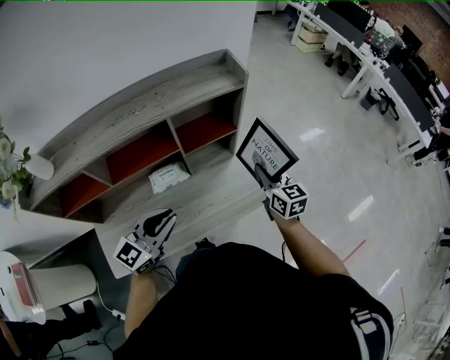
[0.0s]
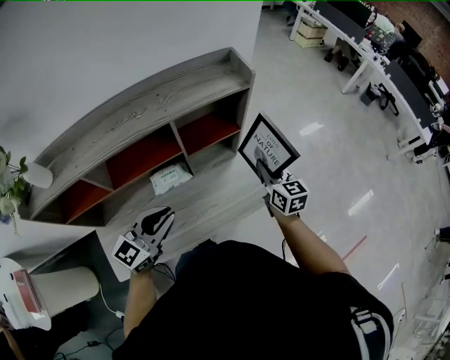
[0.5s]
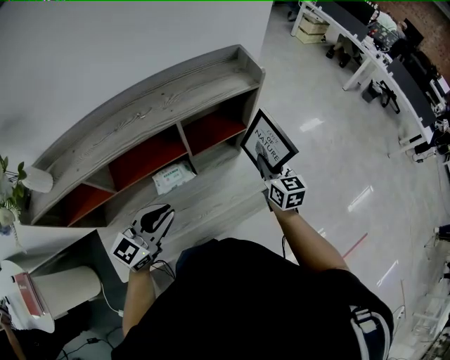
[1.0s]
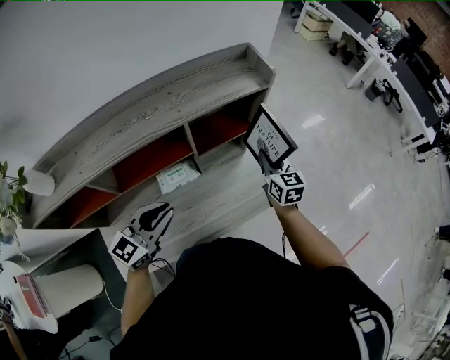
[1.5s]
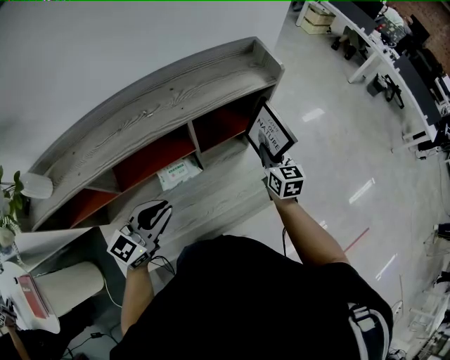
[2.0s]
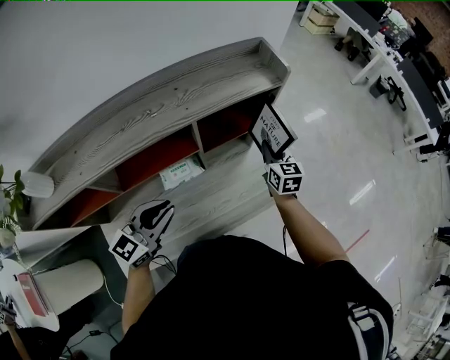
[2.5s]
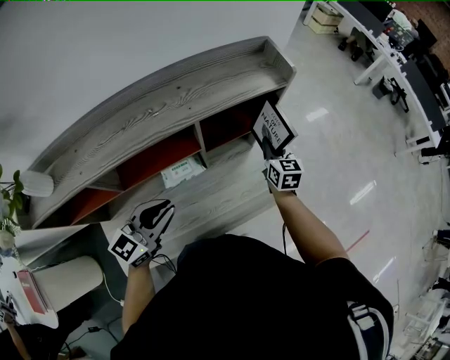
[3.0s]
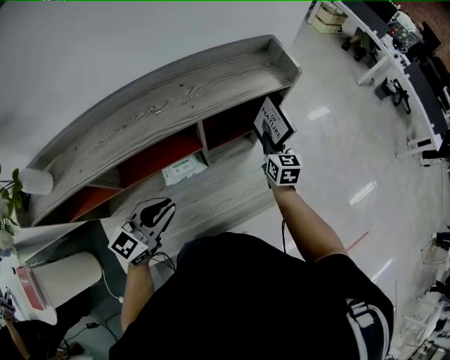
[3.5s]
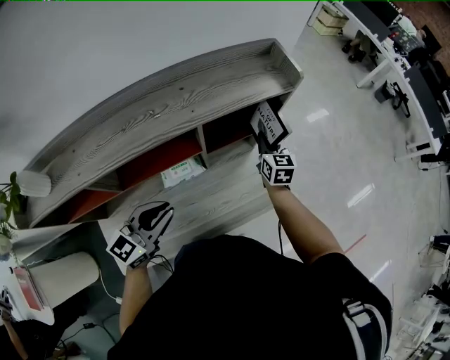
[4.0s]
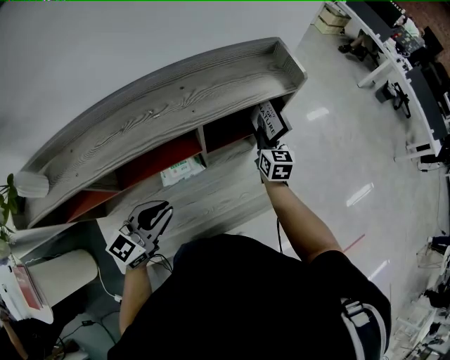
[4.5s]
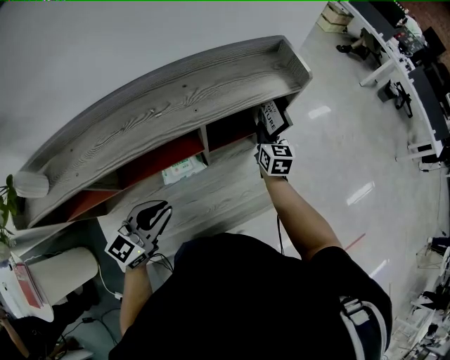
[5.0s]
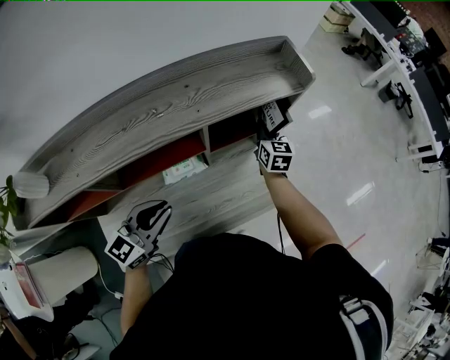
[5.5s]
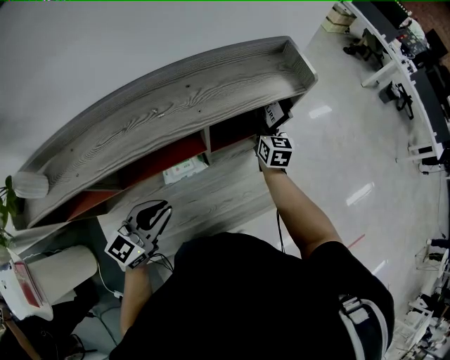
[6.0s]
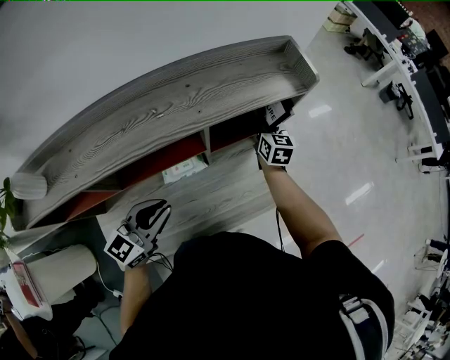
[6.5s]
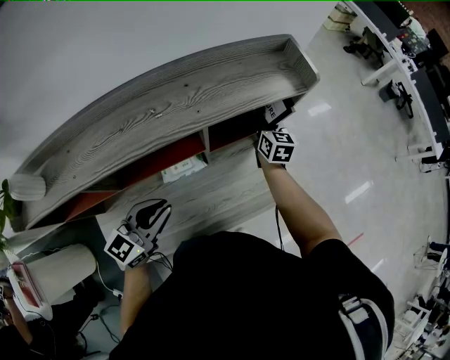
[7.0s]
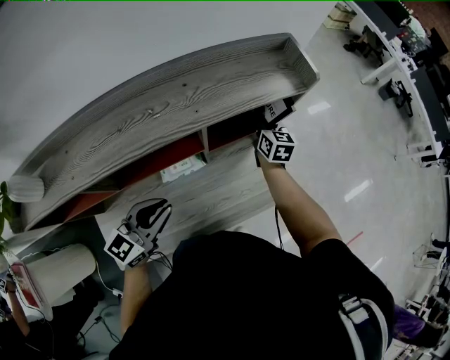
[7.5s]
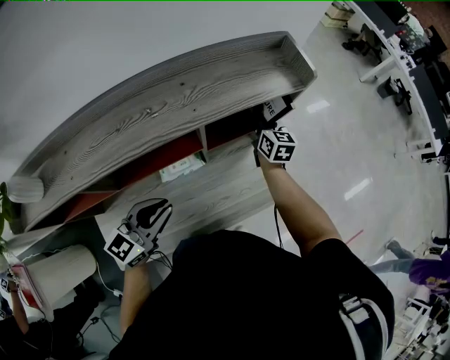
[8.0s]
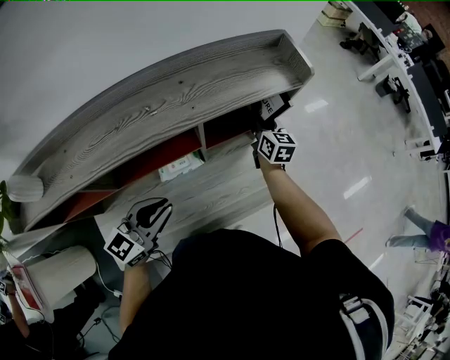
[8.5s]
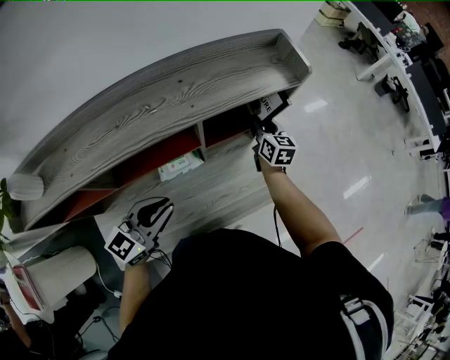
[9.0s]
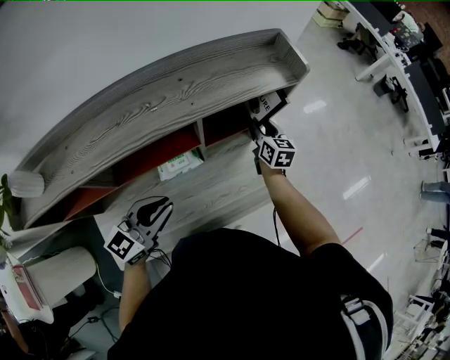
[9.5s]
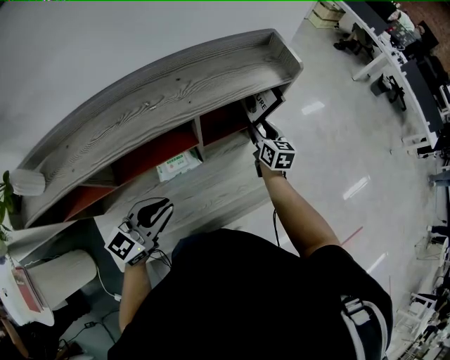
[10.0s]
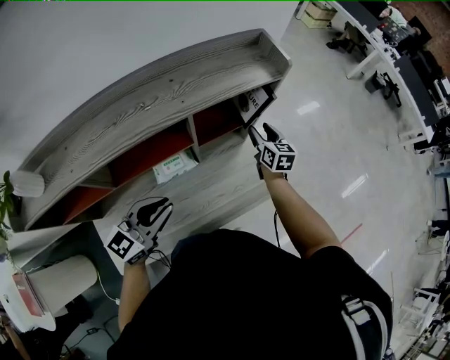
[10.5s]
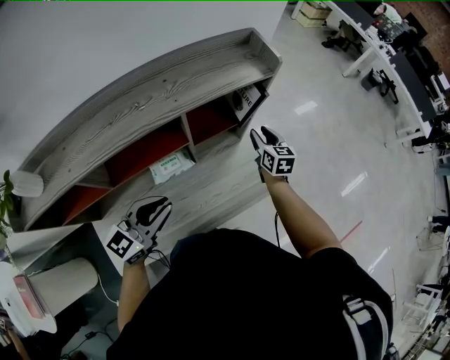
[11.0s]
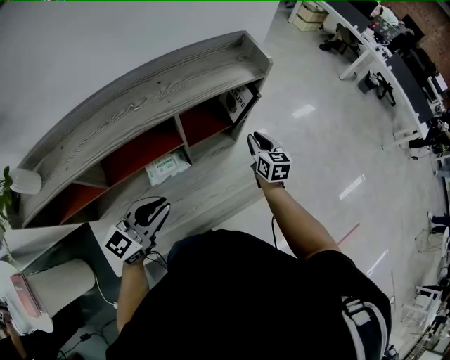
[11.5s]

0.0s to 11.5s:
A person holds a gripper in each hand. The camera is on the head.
0.0s to 2.0s: The right gripper travels forward, to the left and downward by roughly 15 cm; the left gripper is displaced to the left and forward by approximately 10 cm.
2.0s to 4.0s: The right gripper heads forward, covering roughly 5 cm.
4.0s to 6.0s: The right gripper moves forward, approximately 5 cm.
6.0s to 7.5s: The grippers make only small movements.
7.5s to 9.5s: The right gripper opens up.
9.5s to 11.5s: The right gripper moves to the right and backward, roughly 10 cm, and closes its fingers.

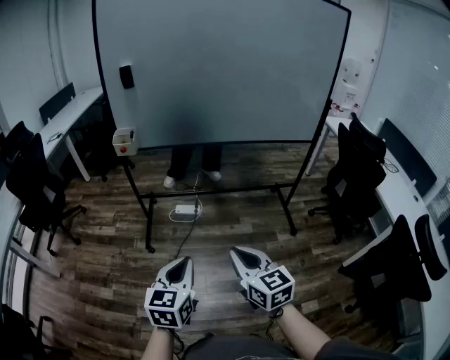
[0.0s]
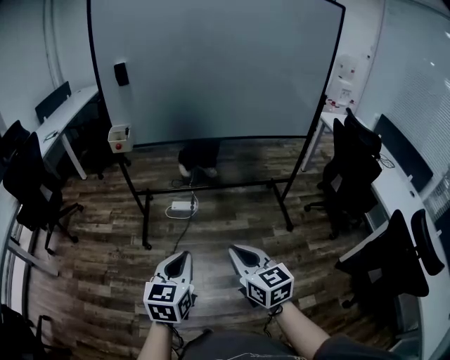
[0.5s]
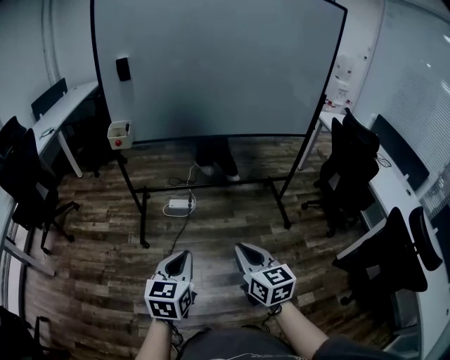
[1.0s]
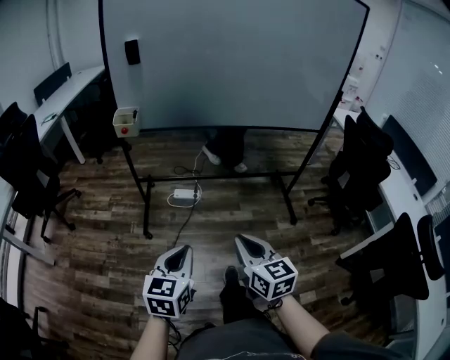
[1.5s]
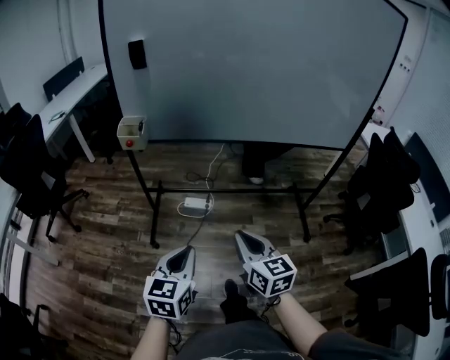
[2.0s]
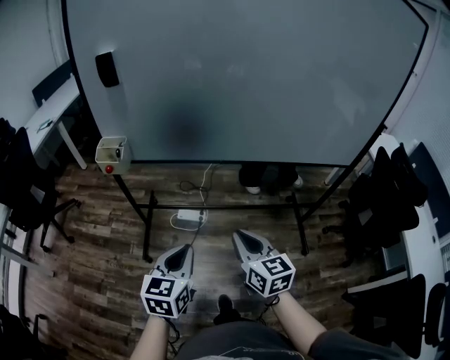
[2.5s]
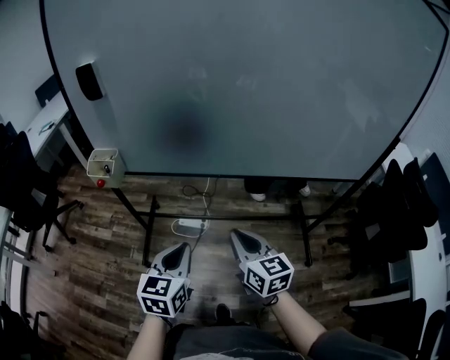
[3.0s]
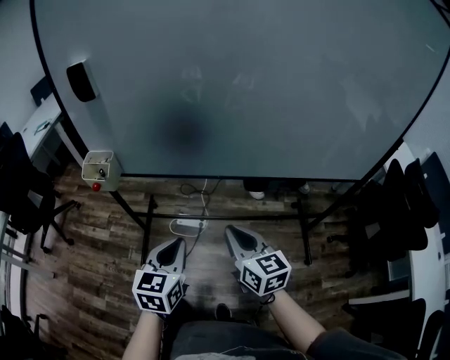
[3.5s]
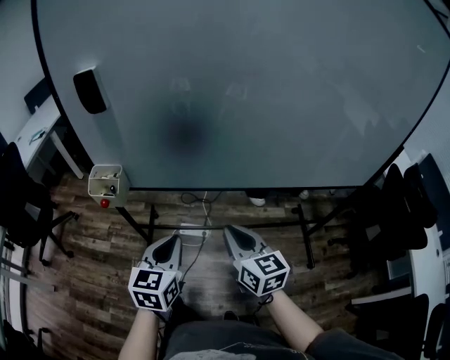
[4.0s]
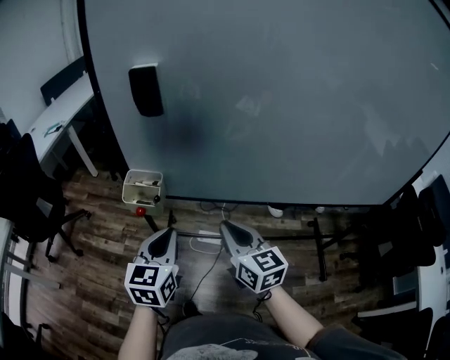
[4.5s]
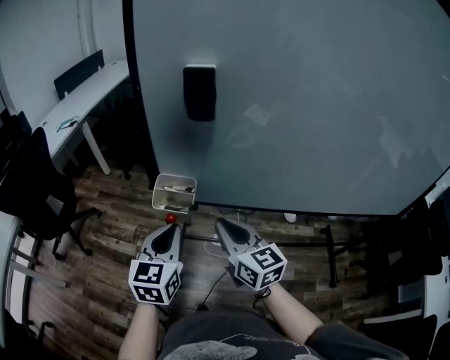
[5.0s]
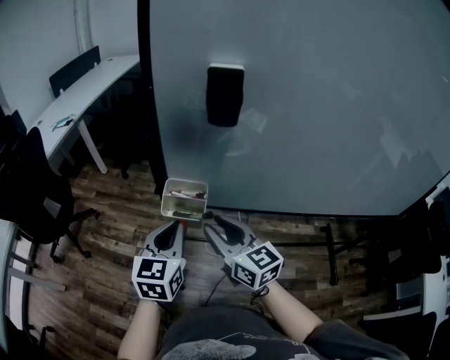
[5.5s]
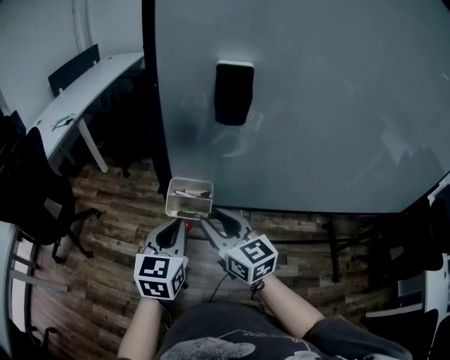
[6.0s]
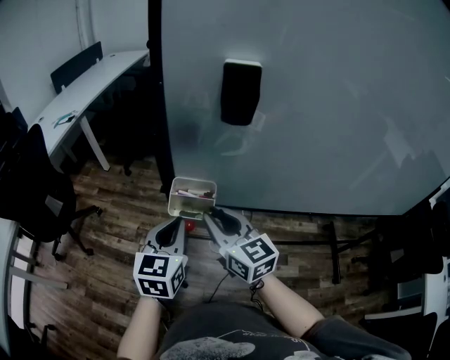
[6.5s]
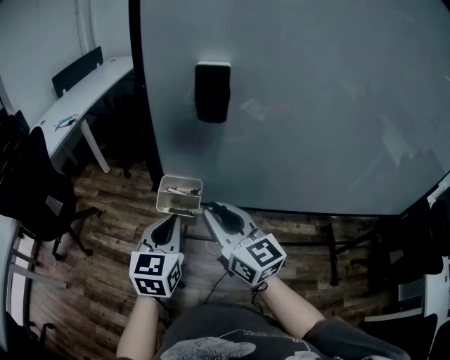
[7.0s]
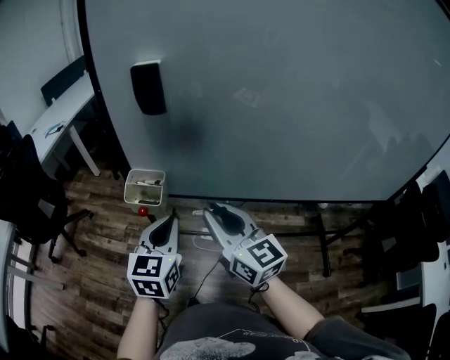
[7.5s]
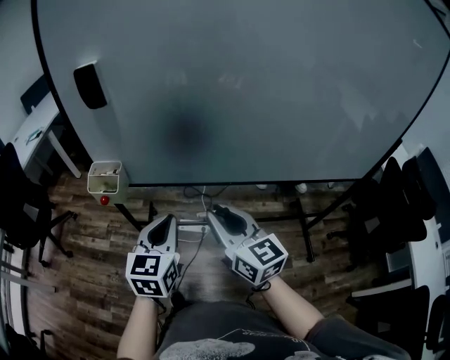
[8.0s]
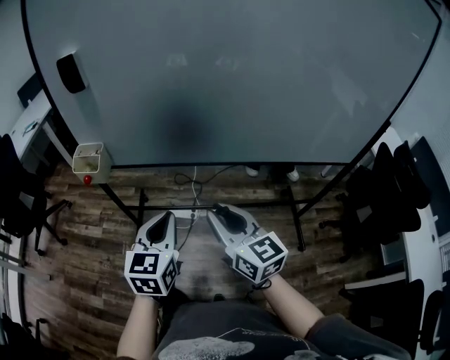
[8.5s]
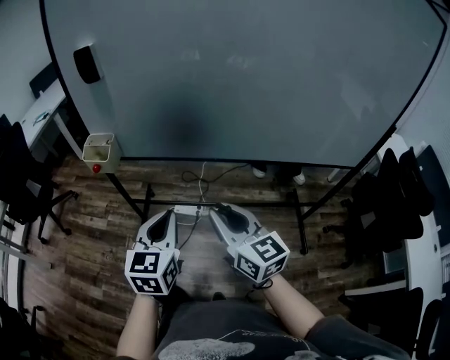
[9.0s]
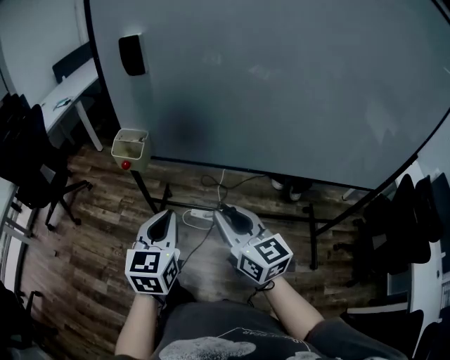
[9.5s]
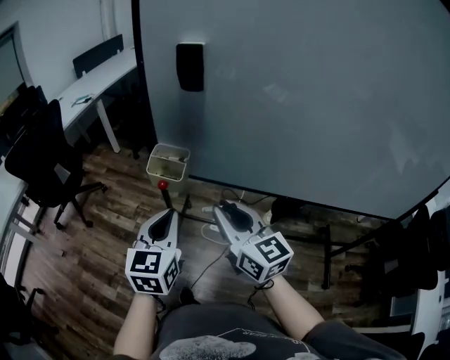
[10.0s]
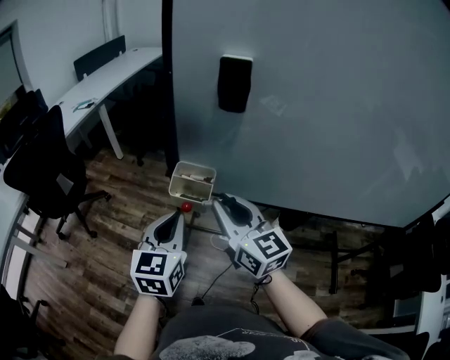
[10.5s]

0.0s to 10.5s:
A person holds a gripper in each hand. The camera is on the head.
0.0s to 2.0s: The grippers both shift forward by some 15 cm.
2.0s to 4.0s: The two grippers go roughly 30 cm forward.
4.0s to 6.5s: The grippers both shift to the left and forward by some 30 cm.
6.5s to 8.5s: The grippers both shift to the right and backward by about 40 cm.
8.5s to 10.5s: The grippers both shift to the left and forward by some 35 cm.

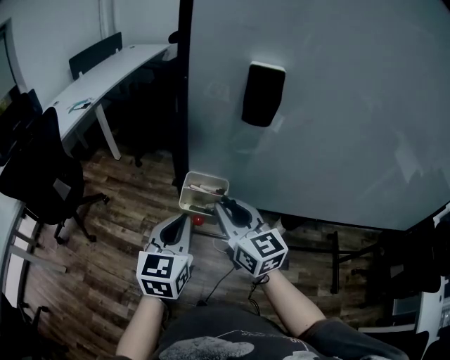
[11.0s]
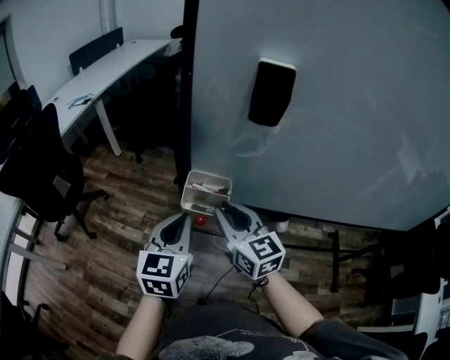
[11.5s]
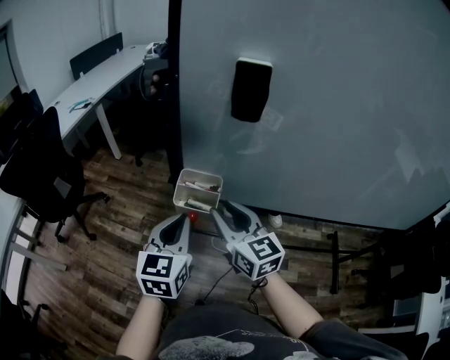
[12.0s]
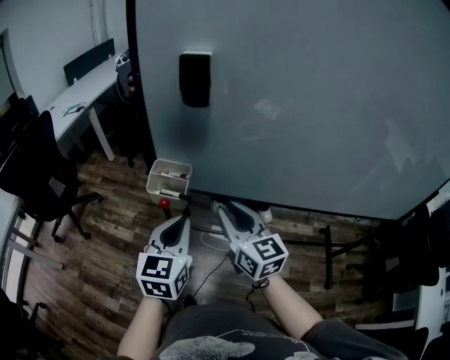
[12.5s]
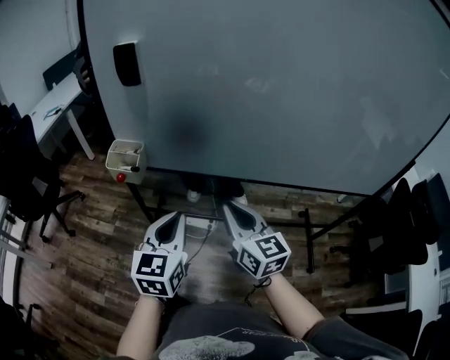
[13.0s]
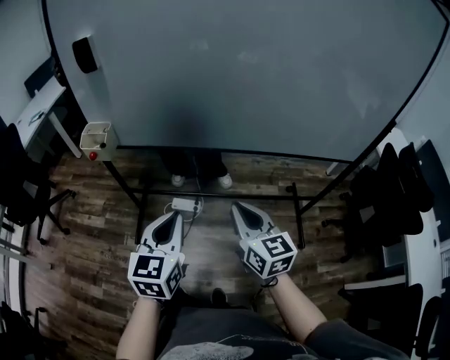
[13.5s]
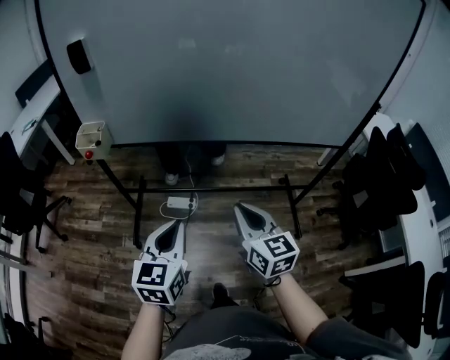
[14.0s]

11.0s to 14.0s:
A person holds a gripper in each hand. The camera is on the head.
11.0s to 12.5s: Both grippers move to the right and backward, some 10 cm.
12.5s to 14.0s: The grippers both shift to the right and backward by approximately 35 cm.

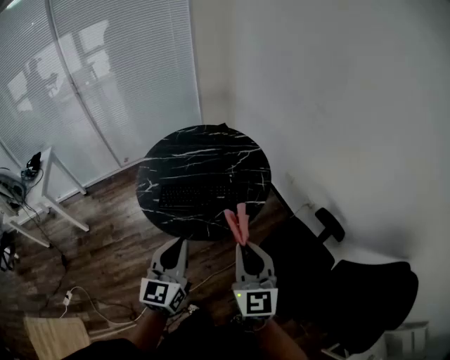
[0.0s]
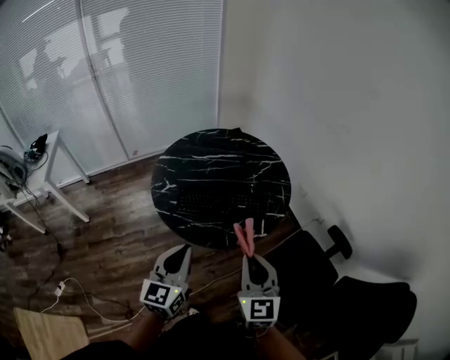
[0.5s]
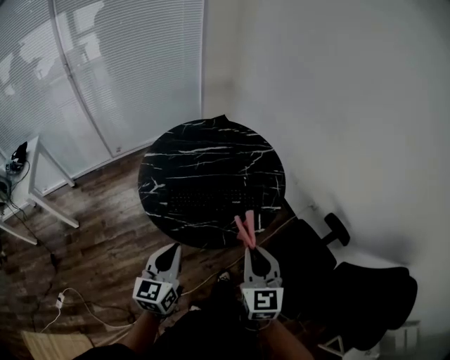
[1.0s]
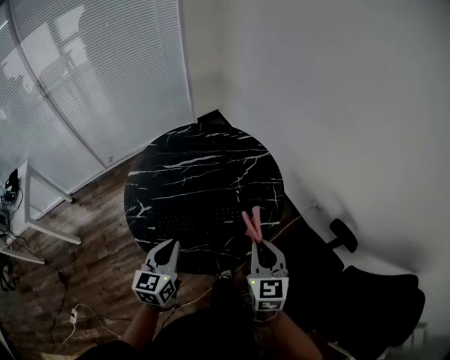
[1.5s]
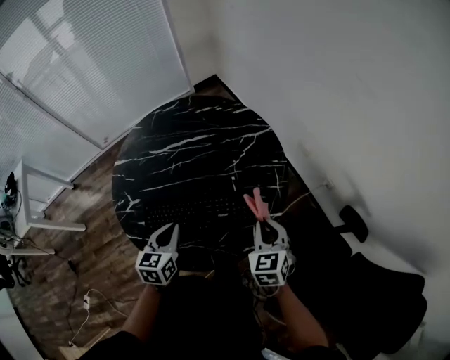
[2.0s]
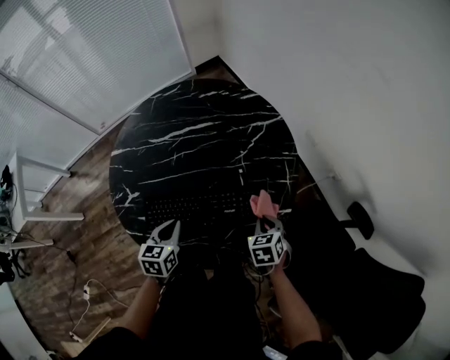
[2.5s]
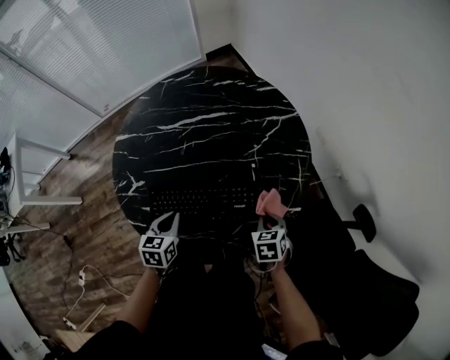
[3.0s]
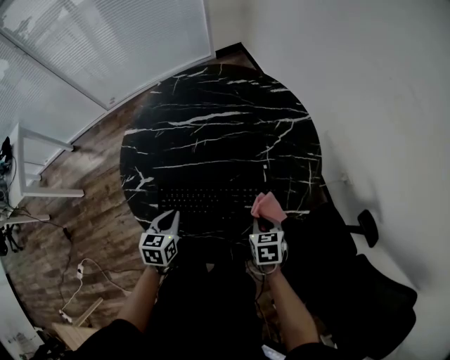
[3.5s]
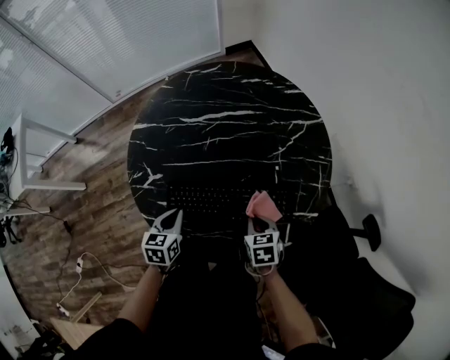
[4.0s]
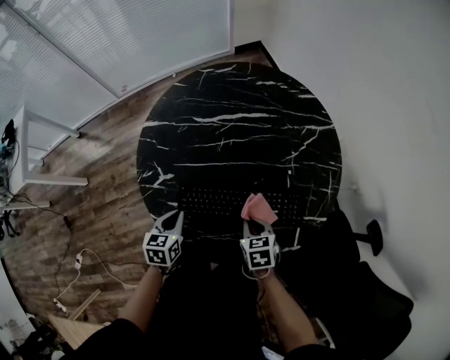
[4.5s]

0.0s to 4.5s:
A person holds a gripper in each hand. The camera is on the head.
0.0s to 2.0s: Both grippers travel together forward and downward, roughly 40 cm. The right gripper points its fingers some 40 degrees further downward; the left gripper points its fingers roughly 30 degrees further downward.
2.0s to 4.5s: Both grippers move to the left and downward, about 25 cm. The right gripper rotates approximately 30 degrees.
